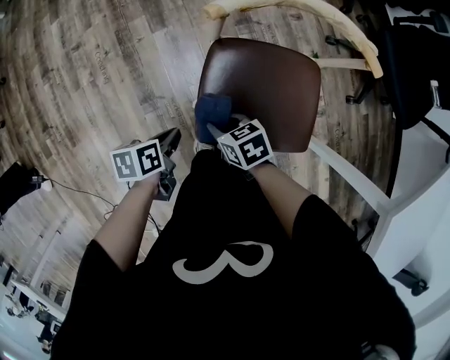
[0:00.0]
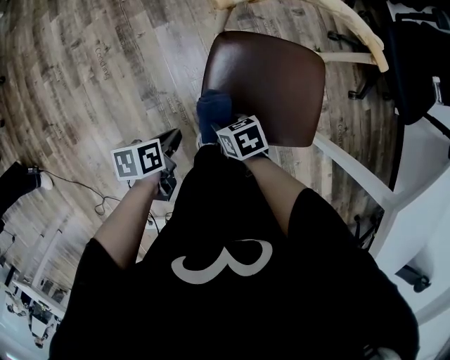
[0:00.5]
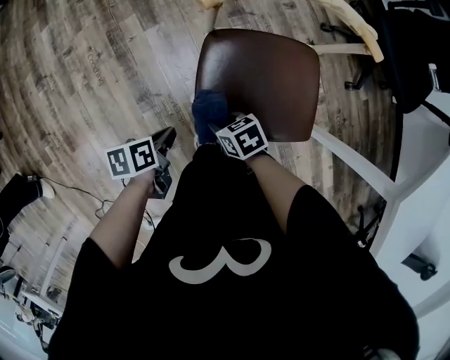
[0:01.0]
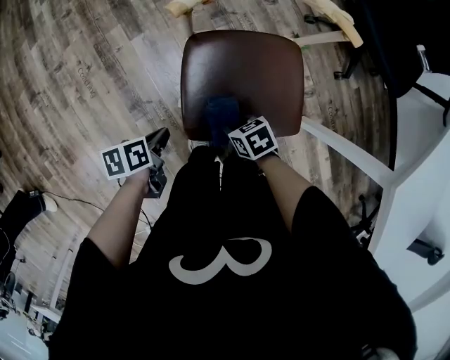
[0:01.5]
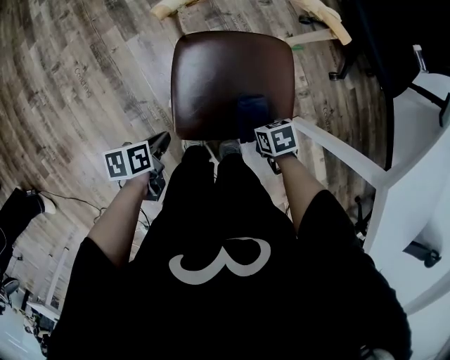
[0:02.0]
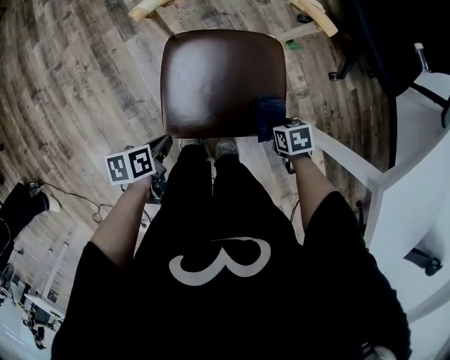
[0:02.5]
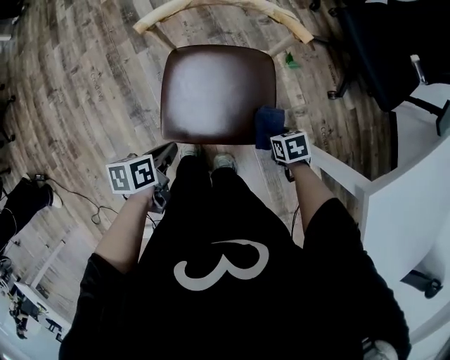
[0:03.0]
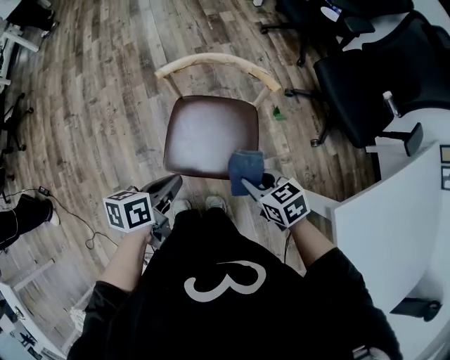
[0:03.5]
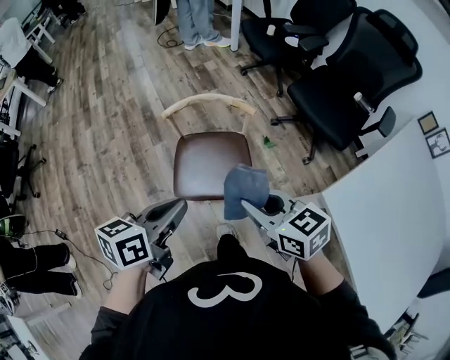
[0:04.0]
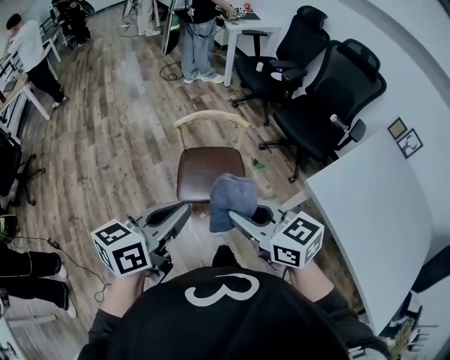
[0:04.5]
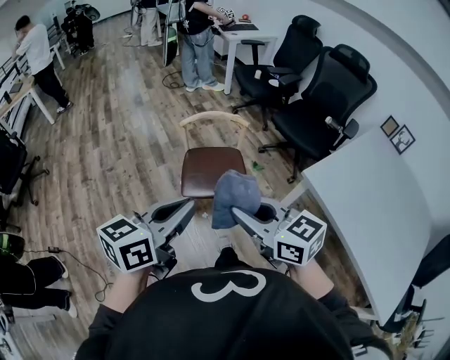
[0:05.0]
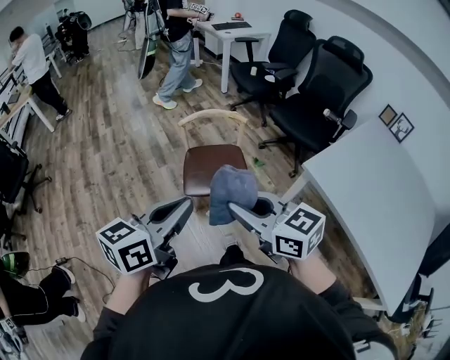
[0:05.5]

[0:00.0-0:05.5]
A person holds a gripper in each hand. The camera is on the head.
0:00.0 to 0:02.0: The right gripper changes place by some 20 cm, and swivels roughly 20 degrees.
0:02.0 to 0:03.5: Both grippers move upward, approximately 25 cm. The left gripper swivels about 20 degrees. The right gripper rotates approximately 30 degrees.
0:03.5 to 0:05.5: The two grippers go some 40 cm upward and backward. The left gripper rotates approximately 40 degrees. Meanwhile the right gripper points its fingers about 30 degrees further upward.

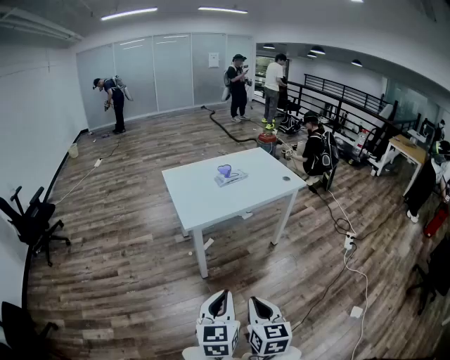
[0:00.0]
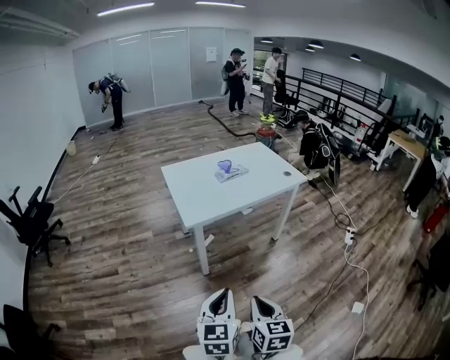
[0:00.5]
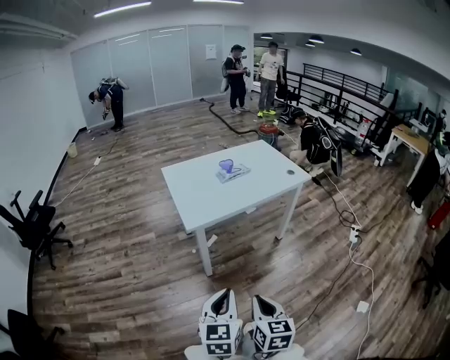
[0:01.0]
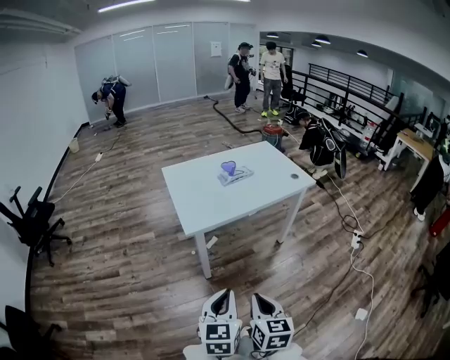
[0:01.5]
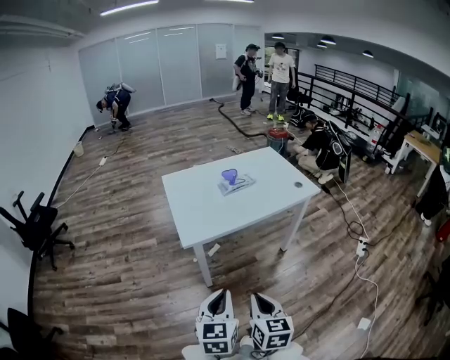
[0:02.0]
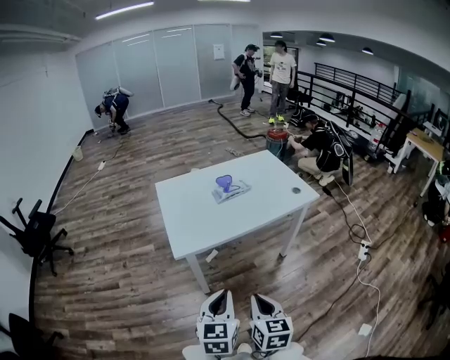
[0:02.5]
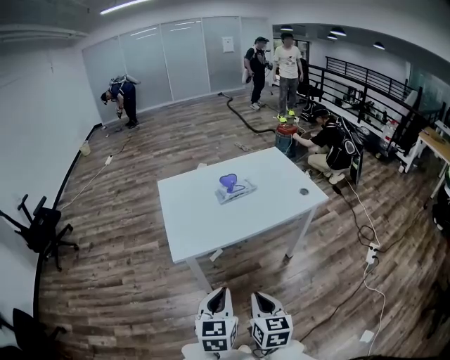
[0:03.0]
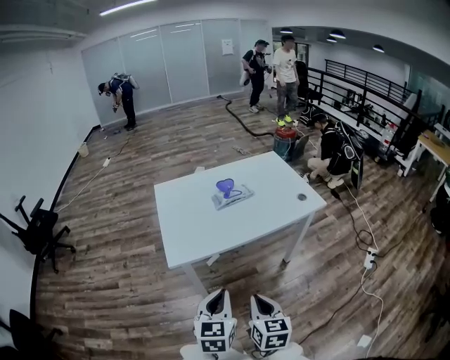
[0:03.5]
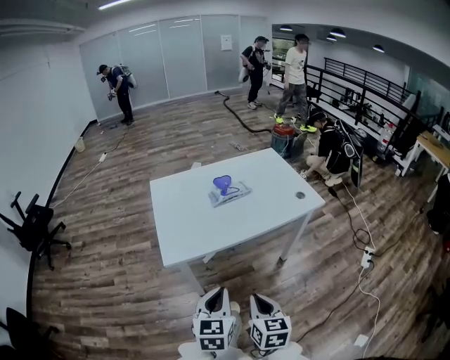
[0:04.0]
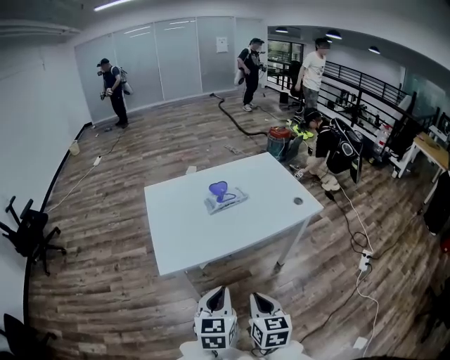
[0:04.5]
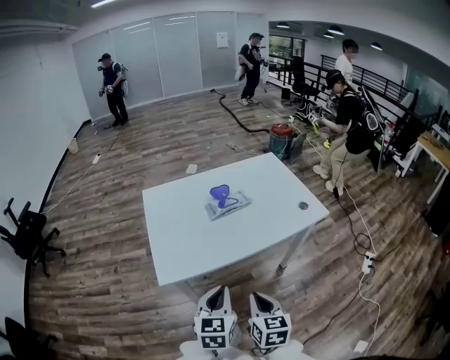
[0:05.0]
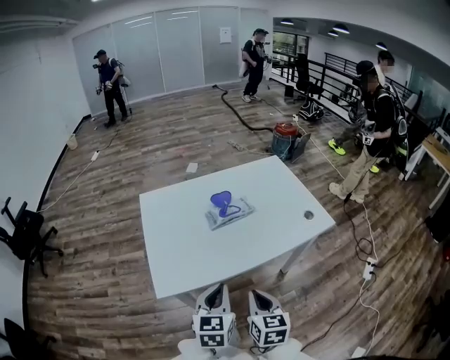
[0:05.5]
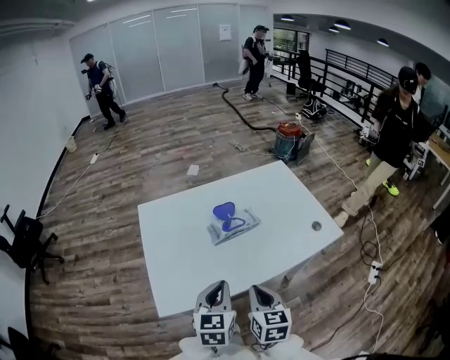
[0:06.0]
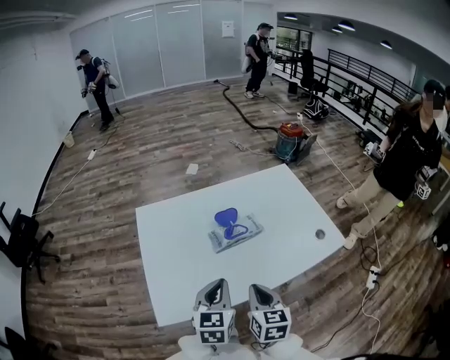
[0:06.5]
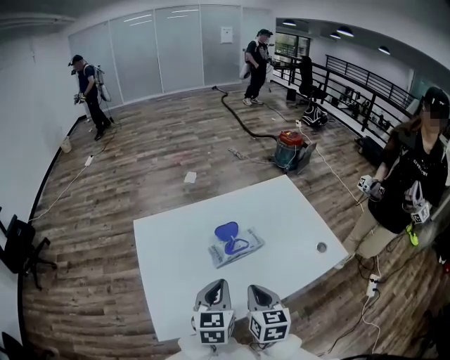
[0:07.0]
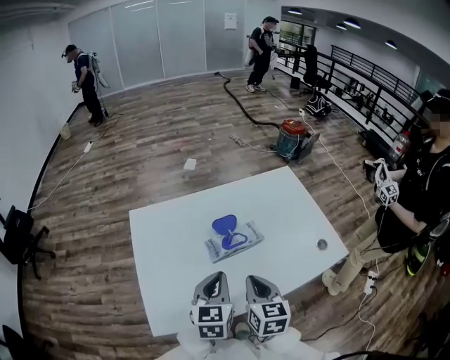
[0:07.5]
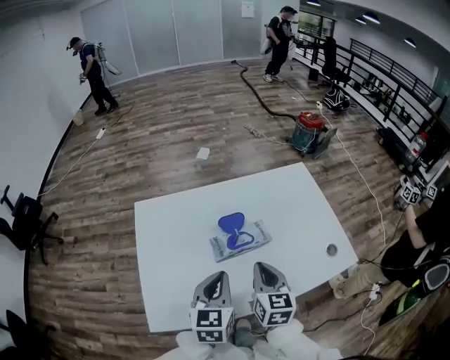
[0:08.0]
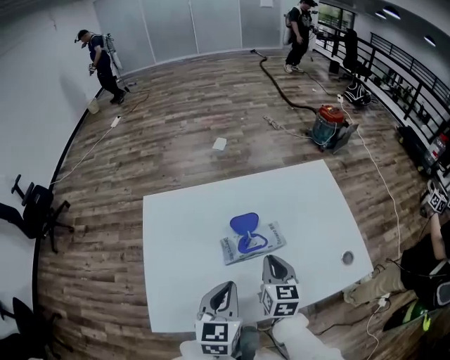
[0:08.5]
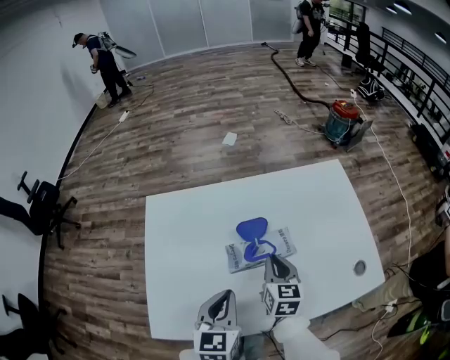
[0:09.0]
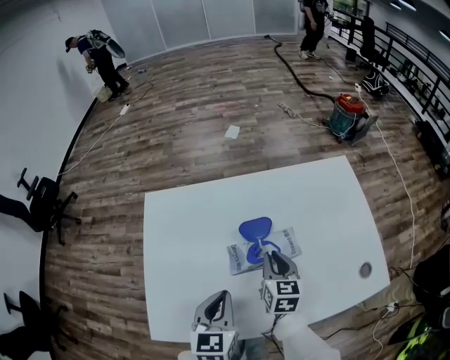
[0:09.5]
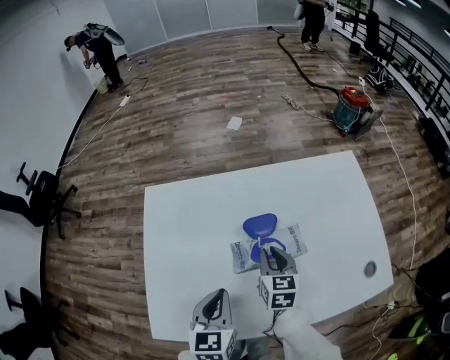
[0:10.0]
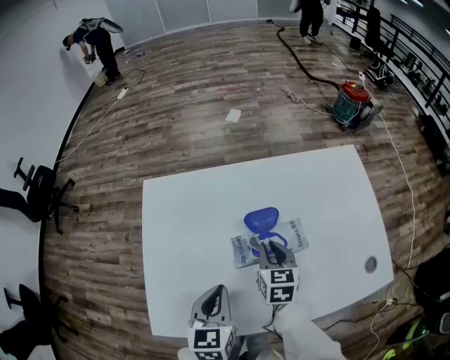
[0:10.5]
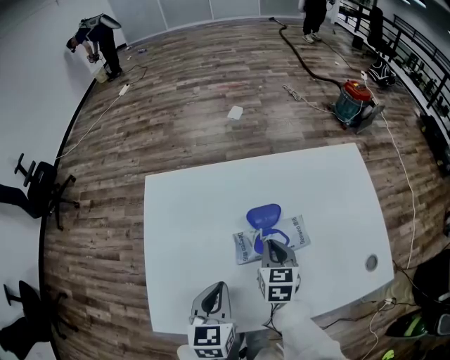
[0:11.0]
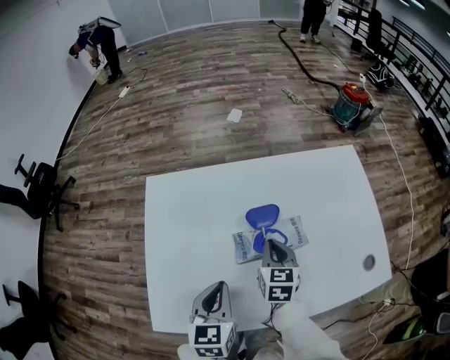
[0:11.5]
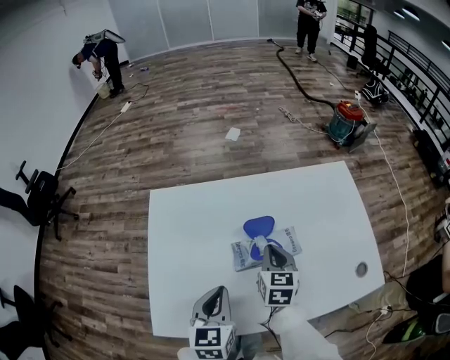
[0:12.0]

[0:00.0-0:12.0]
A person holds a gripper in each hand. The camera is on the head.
0:00.0 to 0:02.0: Both grippers move forward, roughly 15 cm.
0:02.0 to 0:04.0: Both grippers move forward and to the right, roughly 15 cm.
0:04.0 to 0:06.0: The two grippers go some 25 cm forward.
0:06.0 to 0:08.0: Both grippers travel together forward, some 15 cm.
0:08.0 to 0:10.0: The right gripper travels forward and downward by roughly 15 cm. The left gripper is displaced downward by roughly 10 cm.
0:10.0 to 0:12.0: There are only small adjustments of the grippers.

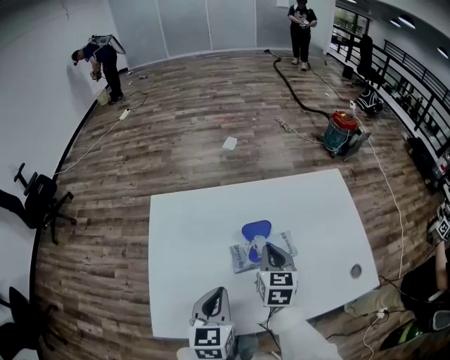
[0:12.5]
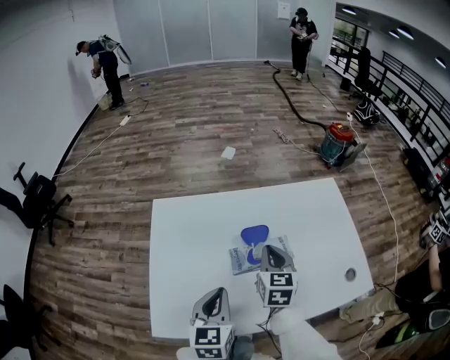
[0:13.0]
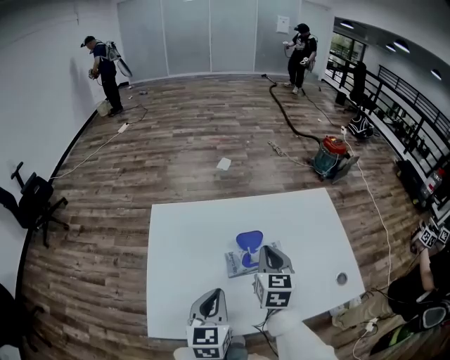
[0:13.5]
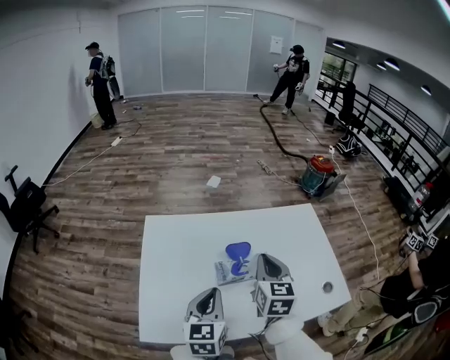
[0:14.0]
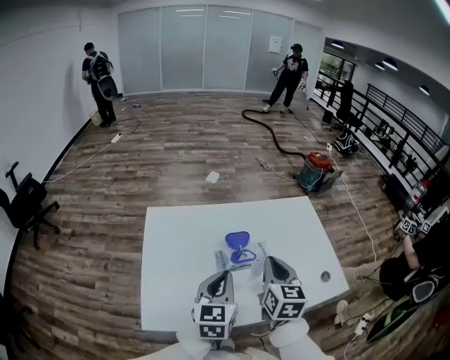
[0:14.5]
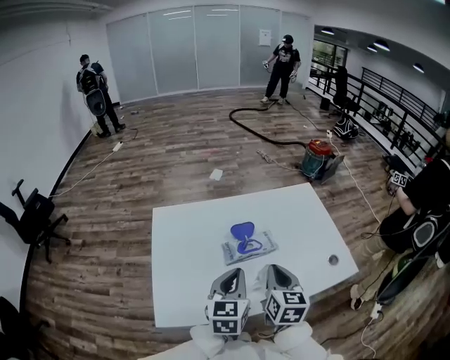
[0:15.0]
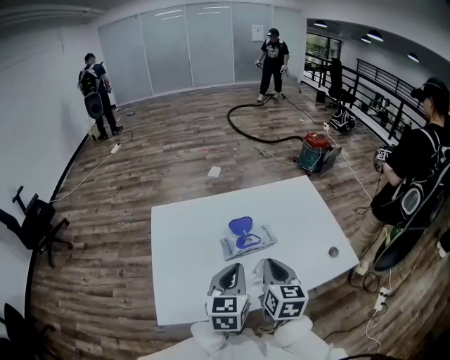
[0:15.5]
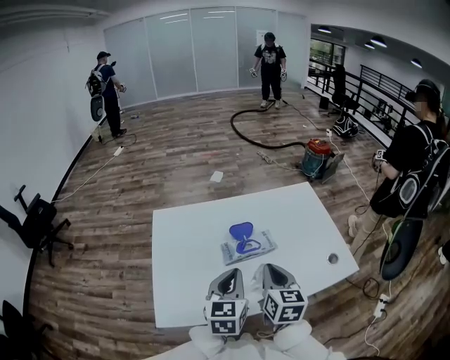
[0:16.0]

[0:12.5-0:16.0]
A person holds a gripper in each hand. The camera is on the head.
0:12.5 to 0:14.5: The left gripper heads upward, covering some 5 cm, while the right gripper is displaced upward and backward by some 15 cm.
0:14.5 to 0:16.0: The right gripper shifts approximately 5 cm backward.

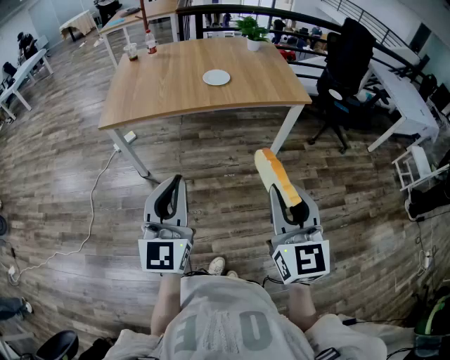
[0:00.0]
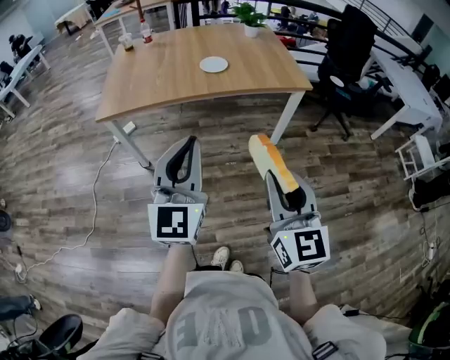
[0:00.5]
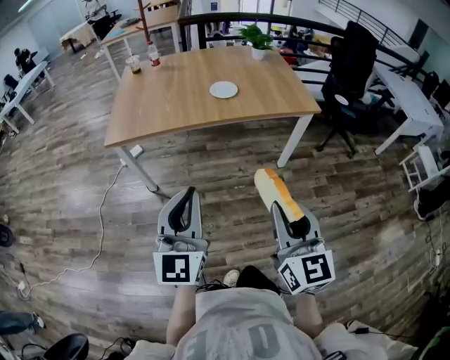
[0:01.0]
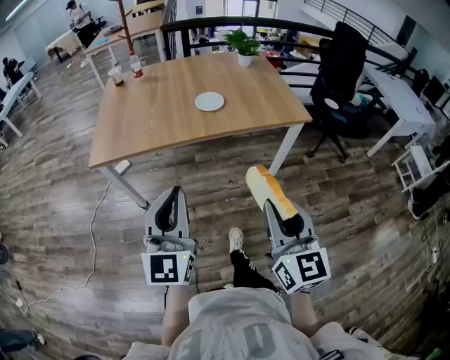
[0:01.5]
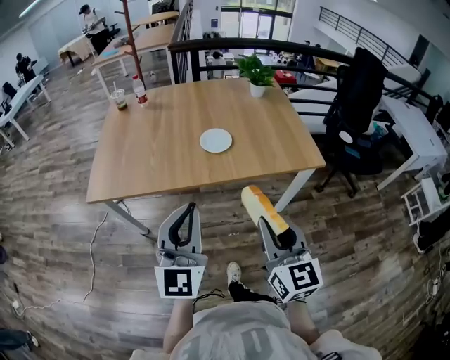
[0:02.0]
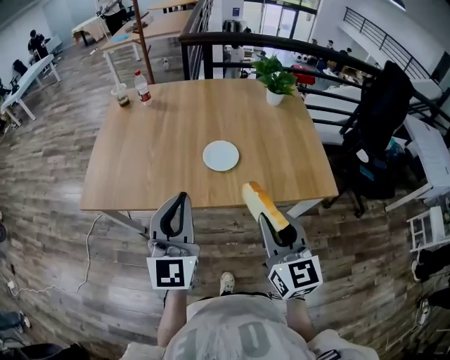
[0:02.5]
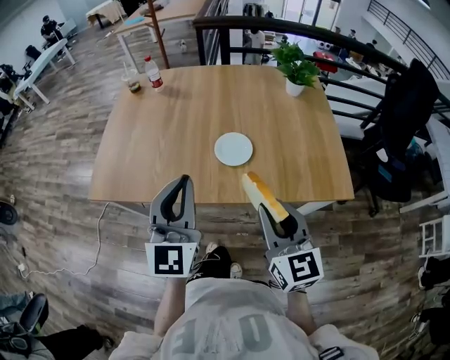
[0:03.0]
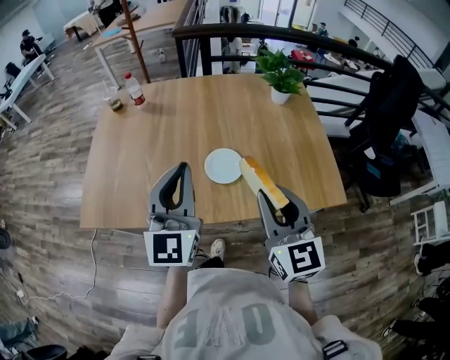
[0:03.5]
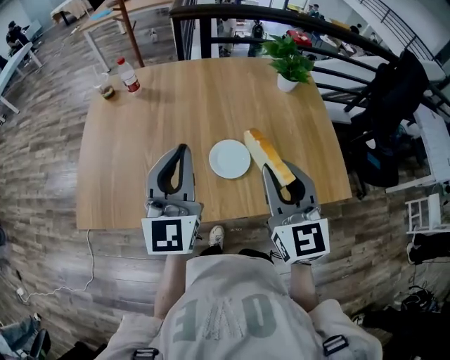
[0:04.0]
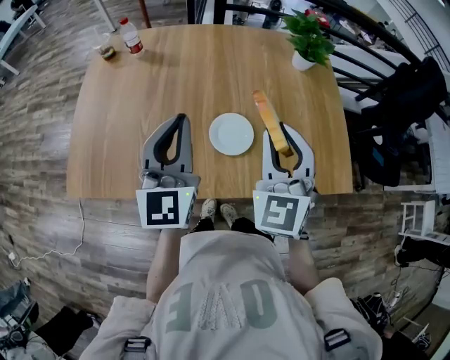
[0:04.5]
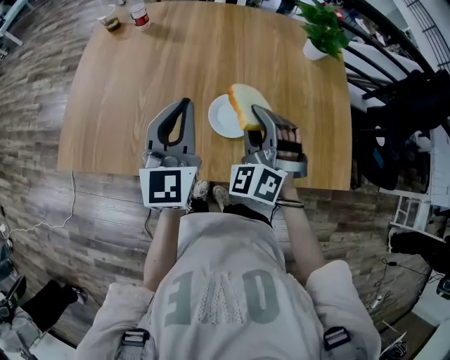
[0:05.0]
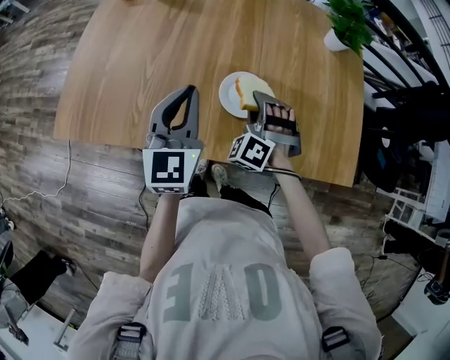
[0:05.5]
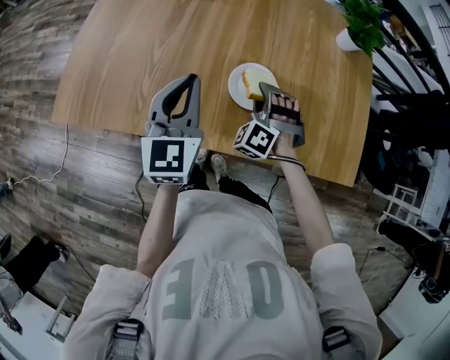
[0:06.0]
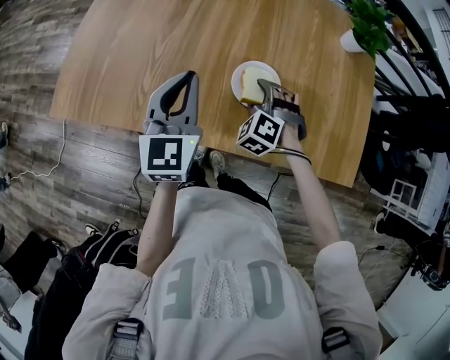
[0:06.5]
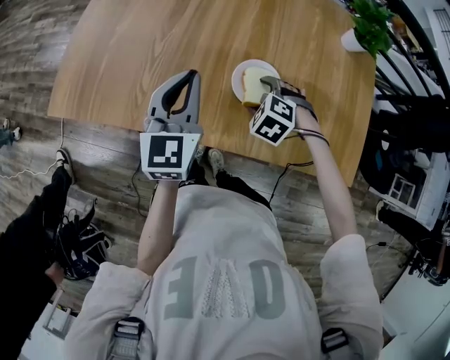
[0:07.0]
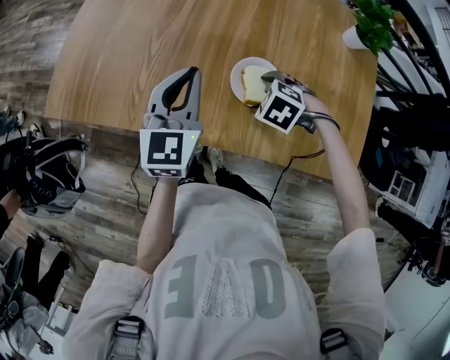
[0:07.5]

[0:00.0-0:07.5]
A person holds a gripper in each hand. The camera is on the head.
0:00.0 to 0:02.0: The grippers both shift forward by some 30 cm.
0:02.0 to 0:04.0: The two grippers go some 35 cm forward.
0:04.0 to 0:05.5: The left gripper shifts approximately 15 cm downward, while the right gripper is displaced downward and forward by roughly 25 cm, and rolls counterclockwise, seen from behind, by some 70 degrees.
0:05.5 to 0:07.5: The right gripper shifts roughly 5 cm downward, points its fingers about 50 degrees further downward, and opens its fingers.
